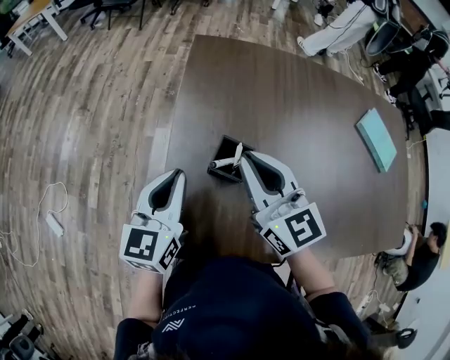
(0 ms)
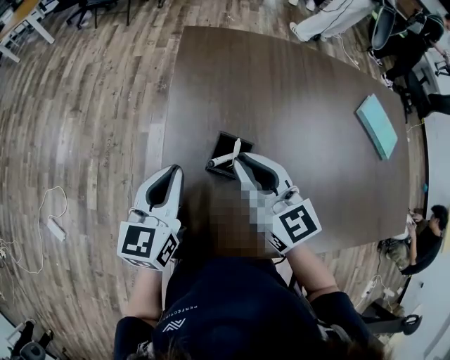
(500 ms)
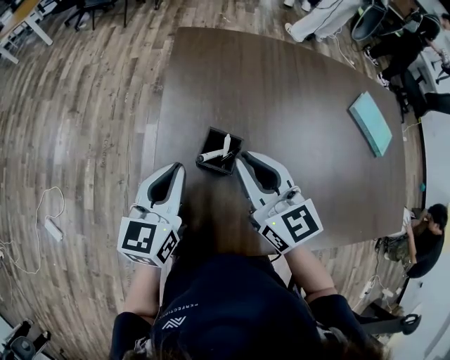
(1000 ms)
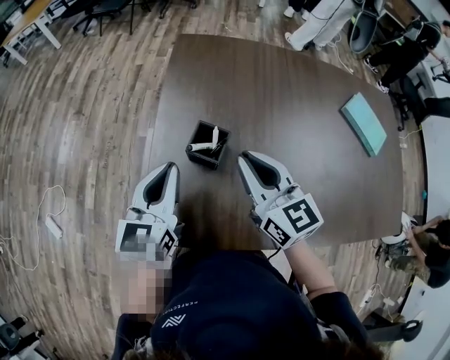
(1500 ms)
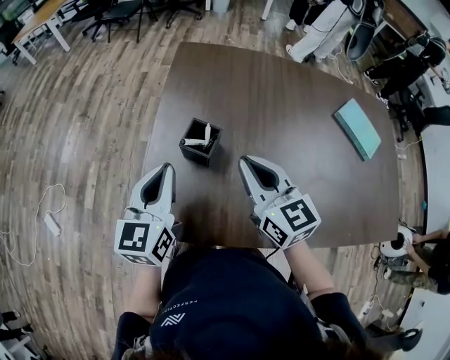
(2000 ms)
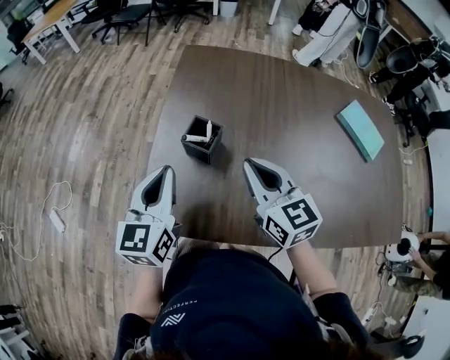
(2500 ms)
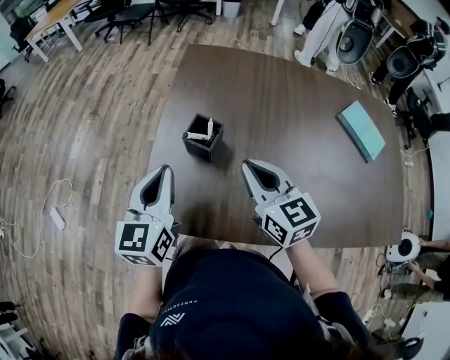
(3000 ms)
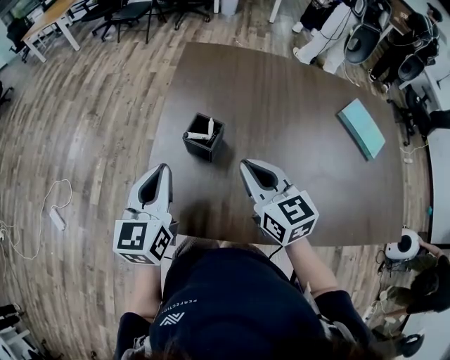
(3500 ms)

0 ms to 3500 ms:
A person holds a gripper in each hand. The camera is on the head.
0 ms to 2000 ms: The right gripper shifts roughly 10 cm backward and to the right, while the left gripper shifts some 5 cm backward.
2000 ms to 3500 ms: The grippers move only a little.

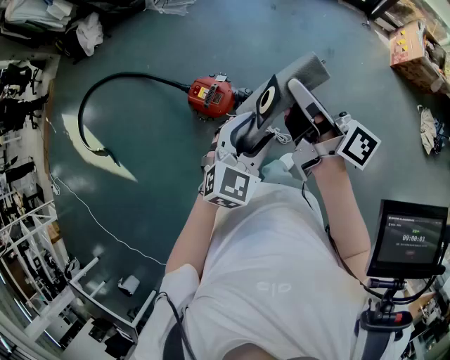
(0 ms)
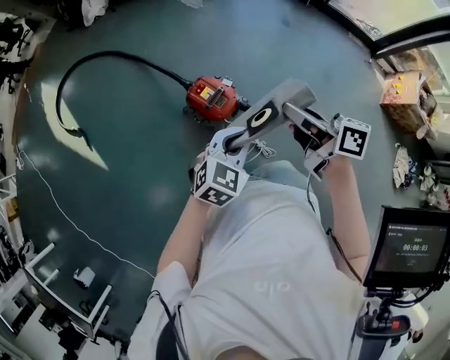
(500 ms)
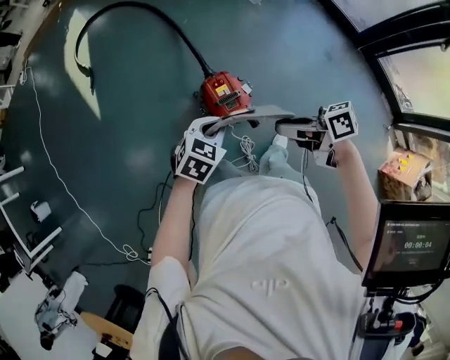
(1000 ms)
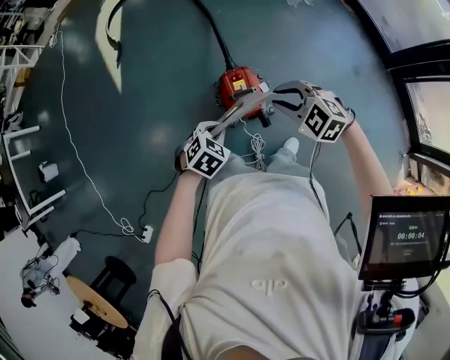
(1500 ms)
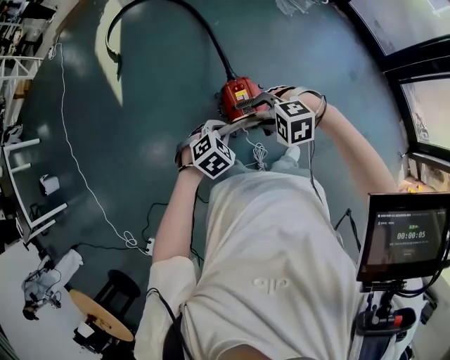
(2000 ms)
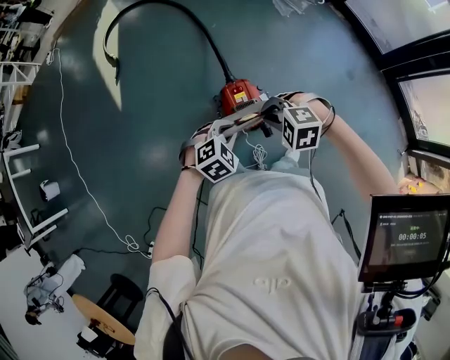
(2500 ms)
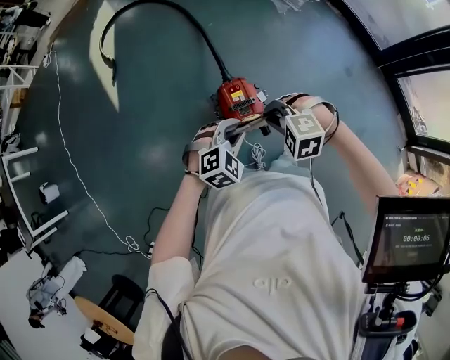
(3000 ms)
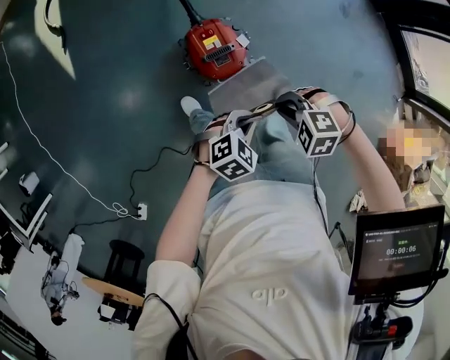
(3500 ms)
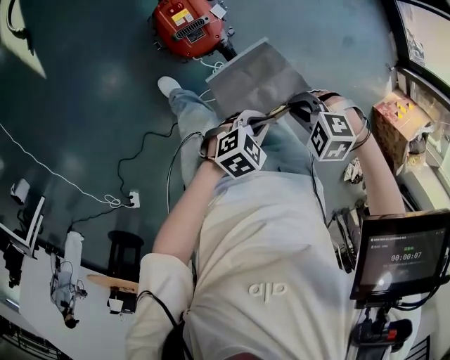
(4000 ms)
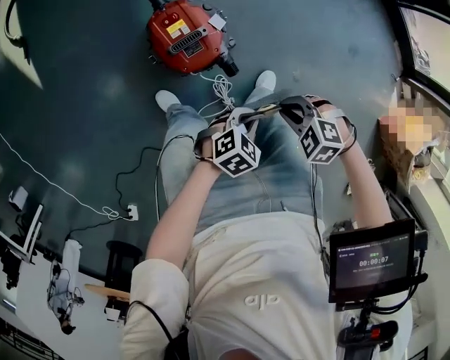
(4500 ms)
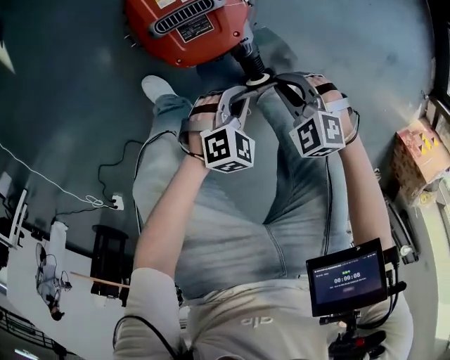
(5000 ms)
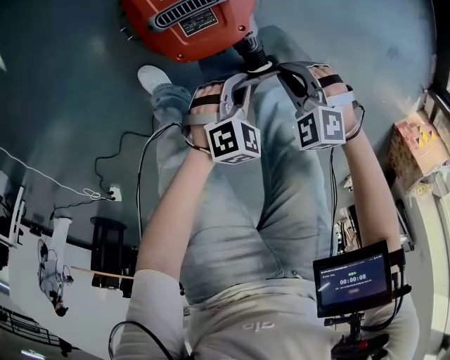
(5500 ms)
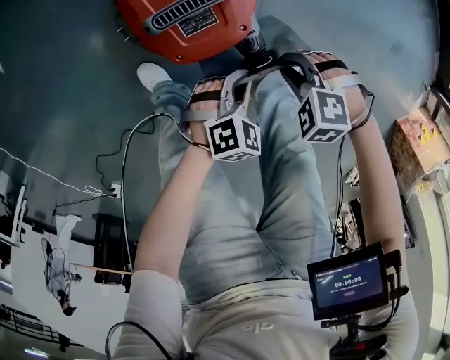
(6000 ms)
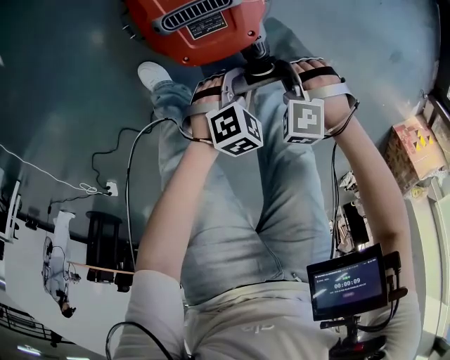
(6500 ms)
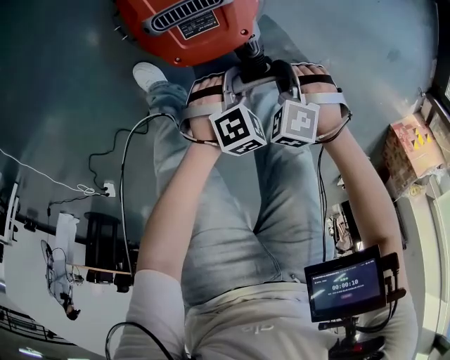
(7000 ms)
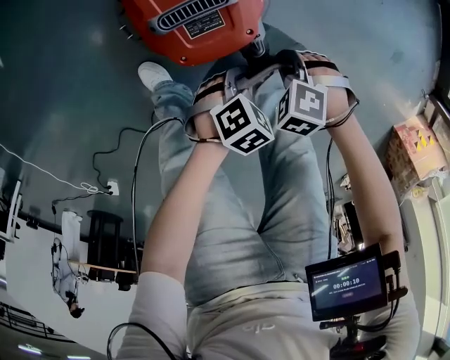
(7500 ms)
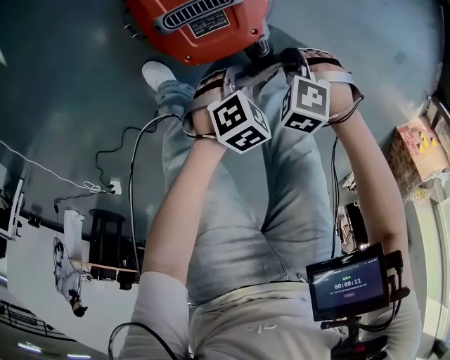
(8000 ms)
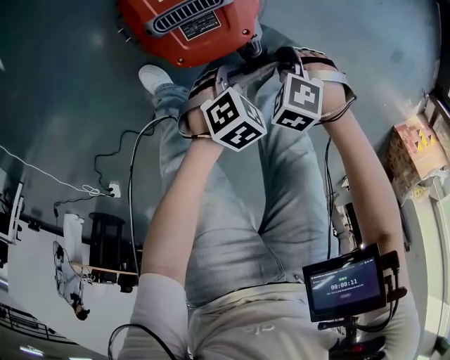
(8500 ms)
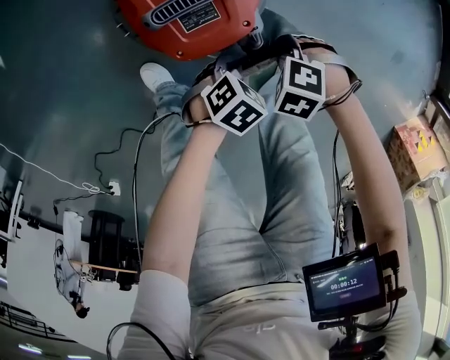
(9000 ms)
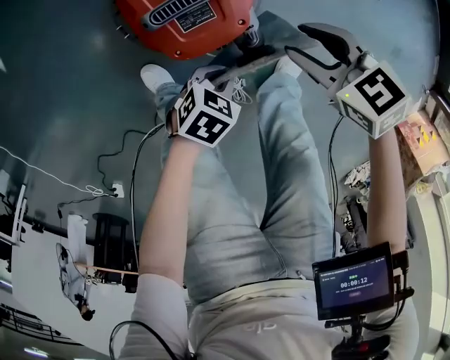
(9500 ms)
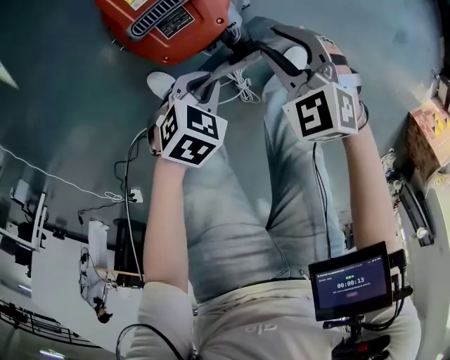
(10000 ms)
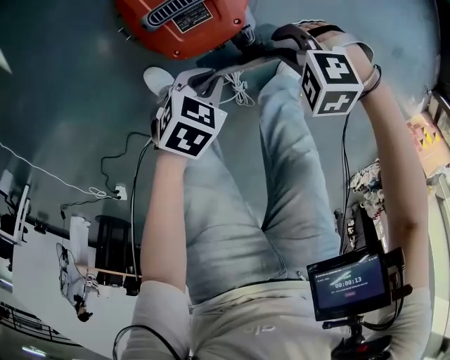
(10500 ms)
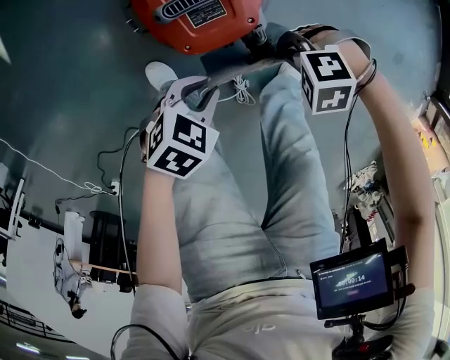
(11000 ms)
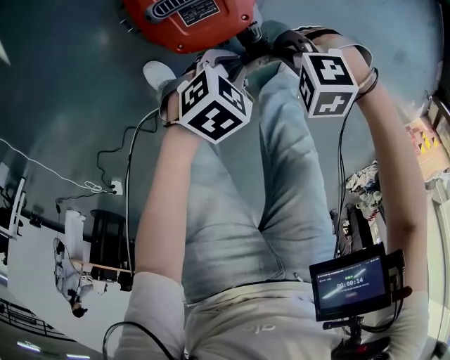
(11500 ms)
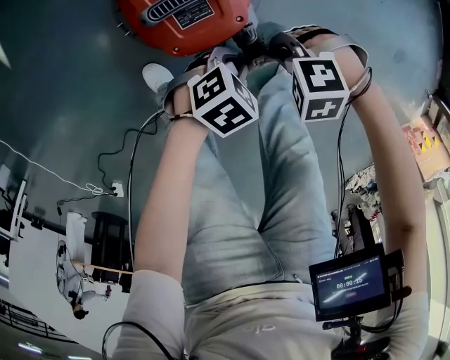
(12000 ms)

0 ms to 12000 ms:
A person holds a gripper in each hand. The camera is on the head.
0 ms to 2000 ms: The right gripper ends up some 35 cm from where it was, points its fingers roughly 70 degrees further downward, and opens. Meanwhile the left gripper shifts by approximately 30 cm, tips its fingers downward by some 40 degrees, and closes its fingers.
2000 ms to 4000 ms: The left gripper changes place by approximately 30 cm, and swivels some 40 degrees. The right gripper moves approximately 25 cm, changes its angle by roughly 30 degrees, and closes.
4000 ms to 6000 ms: Both grippers travel together downward, approximately 35 cm. The left gripper swivels about 30 degrees.
6000 ms to 8000 ms: The grippers make only small movements.
8000 ms to 10000 ms: The right gripper is displaced upward by roughly 10 cm, changes its angle by roughly 40 degrees, and opens its fingers, while the left gripper moves approximately 10 cm.
10000 ms to 12000 ms: The right gripper heads downward, covering about 5 cm, swivels roughly 50 degrees, and closes up. Meanwhile the left gripper ends up roughly 5 cm from where it was.

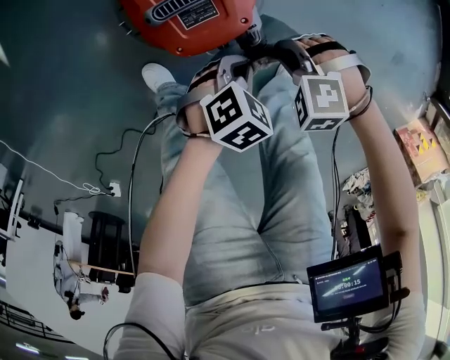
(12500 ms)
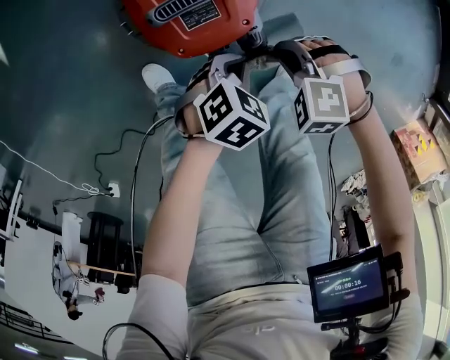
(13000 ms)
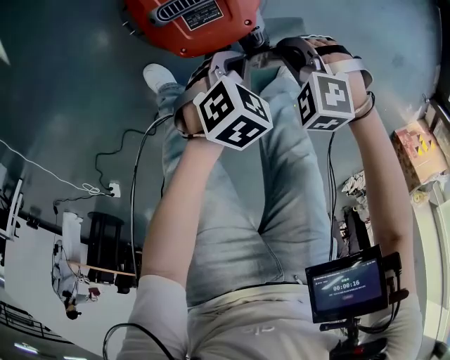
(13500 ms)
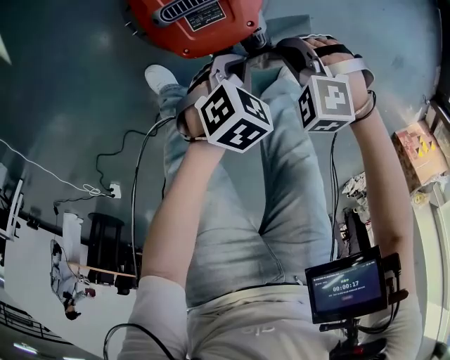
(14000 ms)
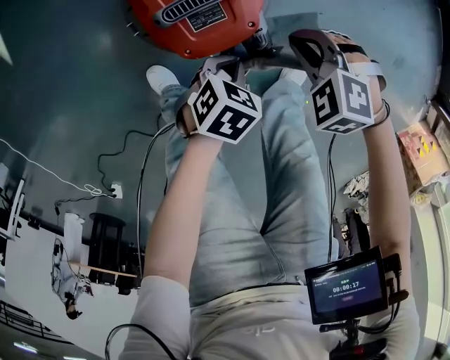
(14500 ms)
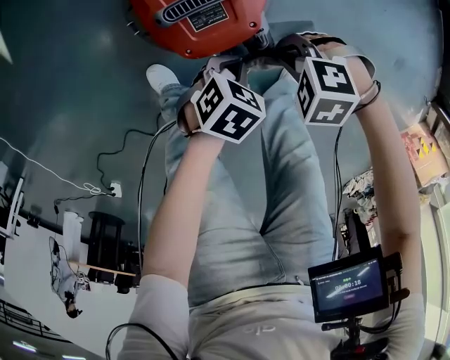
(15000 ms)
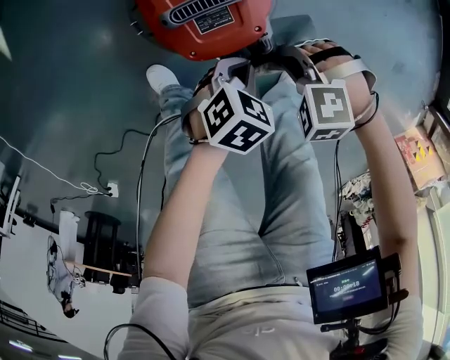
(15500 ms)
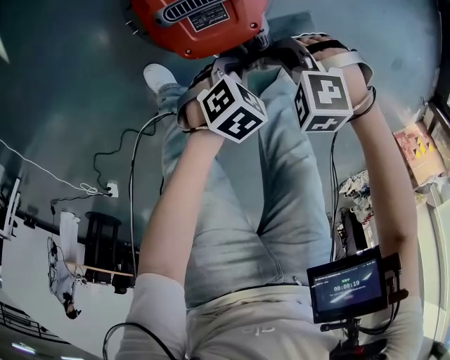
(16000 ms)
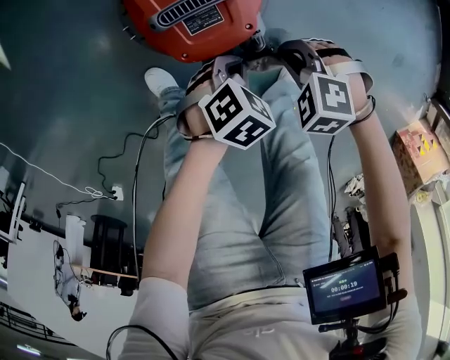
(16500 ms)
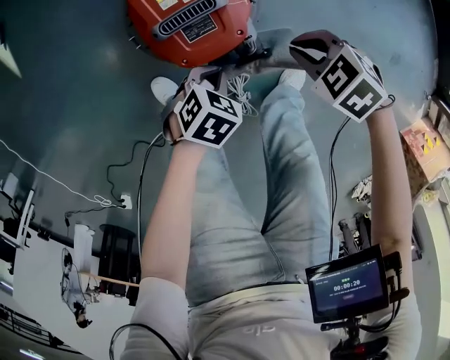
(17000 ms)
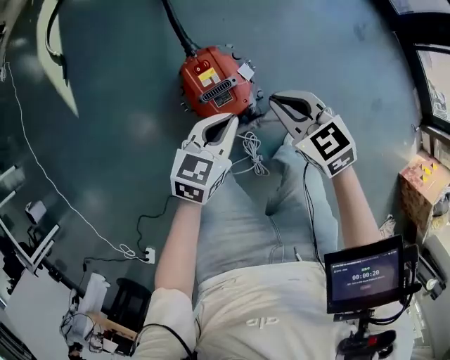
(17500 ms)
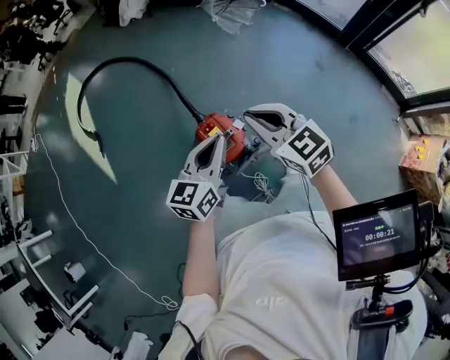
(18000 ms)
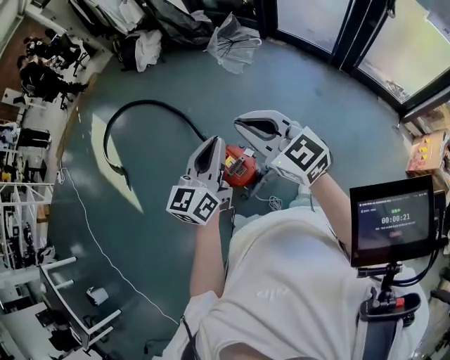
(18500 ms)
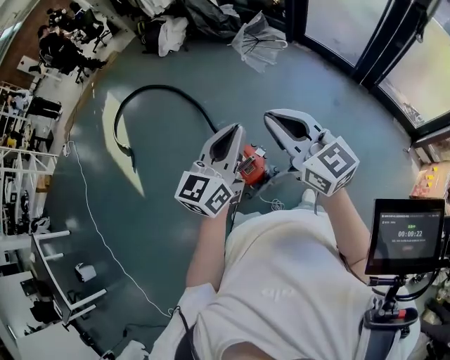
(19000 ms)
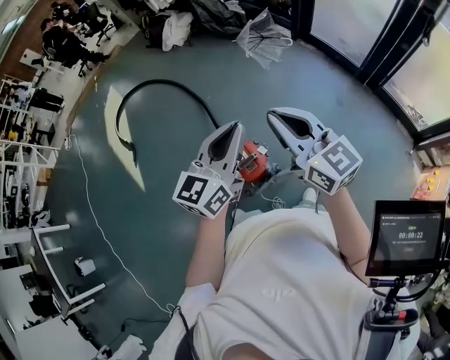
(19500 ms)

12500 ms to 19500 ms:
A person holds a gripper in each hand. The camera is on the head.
12500 ms to 14500 ms: The right gripper ends up roughly 5 cm from where it was.
14500 ms to 16000 ms: The right gripper ends up about 5 cm from where it was.
16000 ms to 17500 ms: Both grippers travel together upward, about 30 cm. The right gripper angles its fingers upward, by roughly 40 degrees; the left gripper angles its fingers upward, by about 30 degrees.
17500 ms to 19500 ms: The two grippers go some 50 cm upward. The left gripper points its fingers approximately 30 degrees further upward, while the right gripper tilts its fingers some 40 degrees upward.

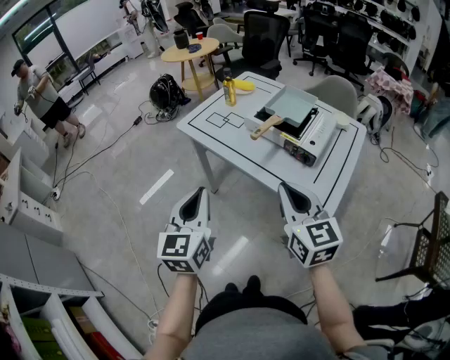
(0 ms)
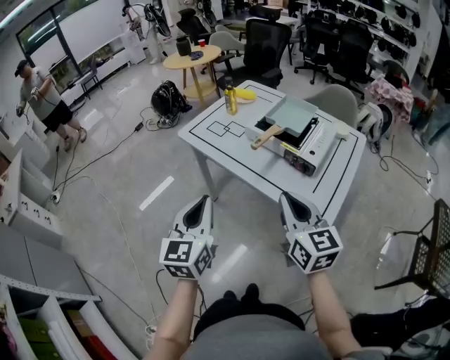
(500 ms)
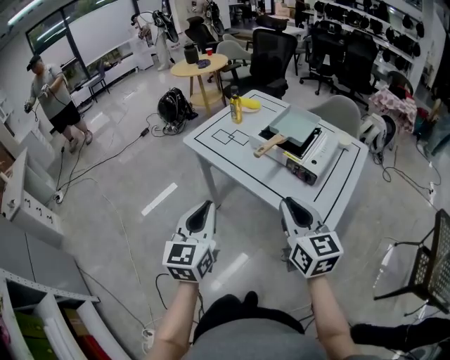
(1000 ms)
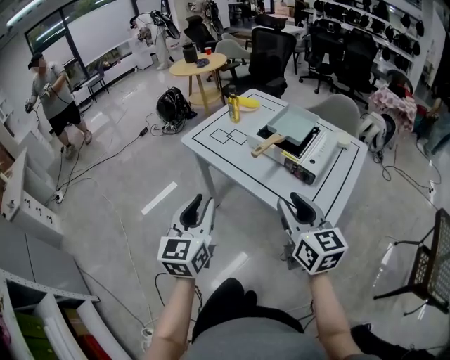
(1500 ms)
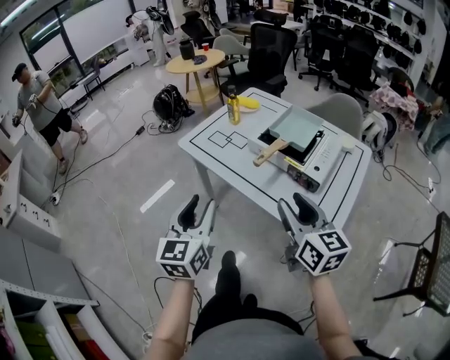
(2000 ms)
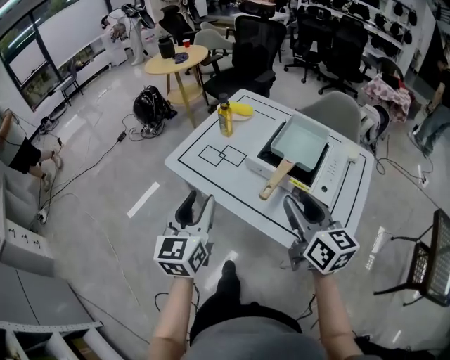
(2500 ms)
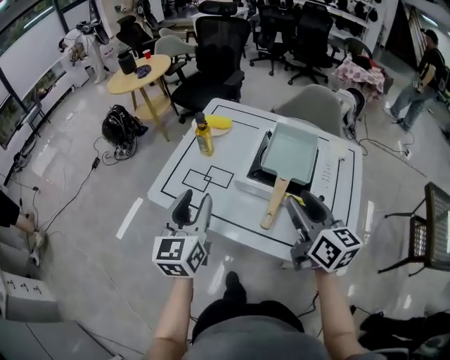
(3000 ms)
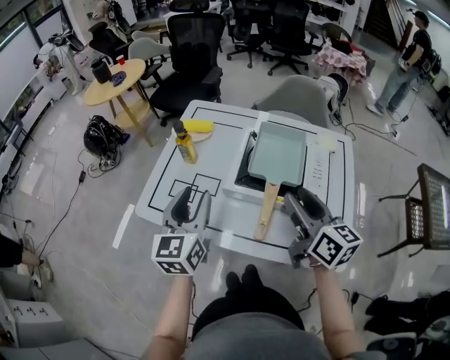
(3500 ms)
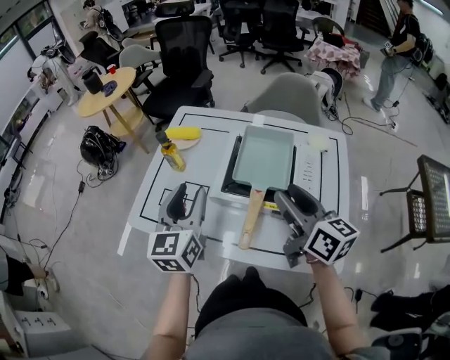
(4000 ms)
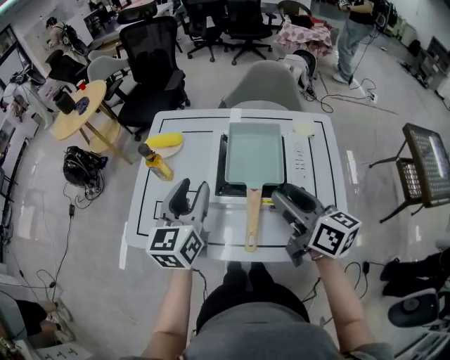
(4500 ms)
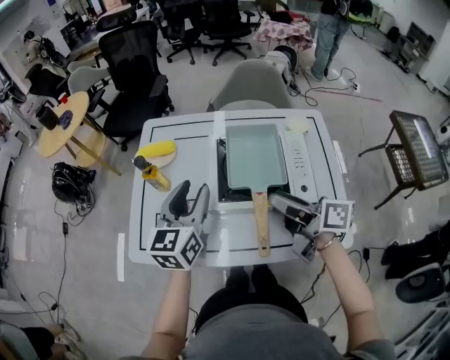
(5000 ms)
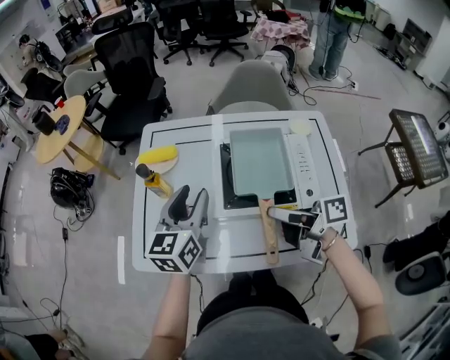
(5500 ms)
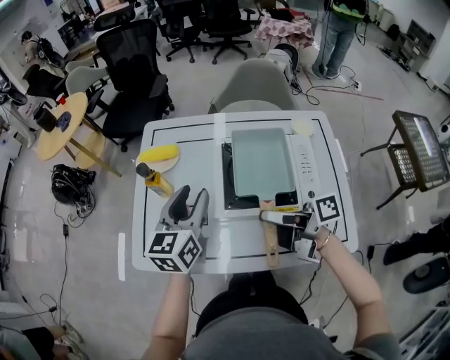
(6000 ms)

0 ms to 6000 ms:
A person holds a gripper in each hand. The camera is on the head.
0 ms to 2000 ms: Both grippers travel together forward, some 5 cm. The left gripper opens its fingers, while the right gripper opens its fingers.
2000 ms to 4000 ms: The two grippers go about 25 cm forward. The right gripper changes its angle by some 20 degrees. Meanwhile the left gripper turns by some 20 degrees.
4000 ms to 6000 ms: The right gripper travels downward and to the left by some 10 cm, and rotates around the line of its fingers by approximately 50 degrees, clockwise from behind; the left gripper heads forward, covering approximately 10 cm, and rotates about 20 degrees.
